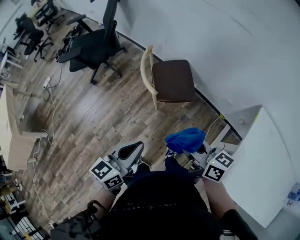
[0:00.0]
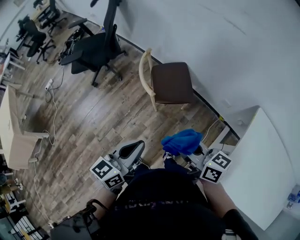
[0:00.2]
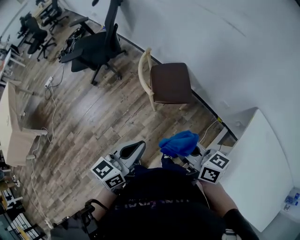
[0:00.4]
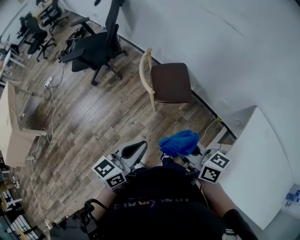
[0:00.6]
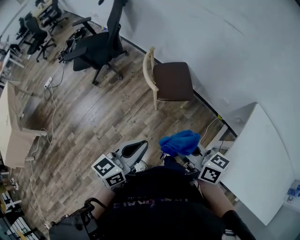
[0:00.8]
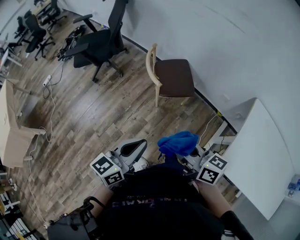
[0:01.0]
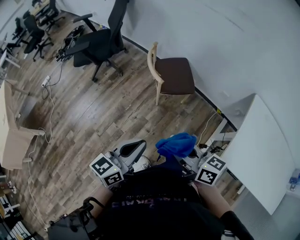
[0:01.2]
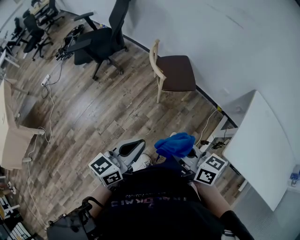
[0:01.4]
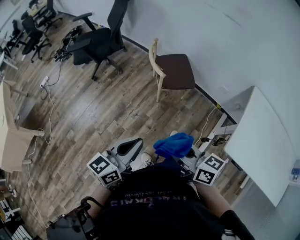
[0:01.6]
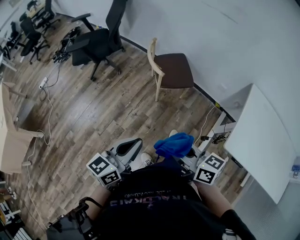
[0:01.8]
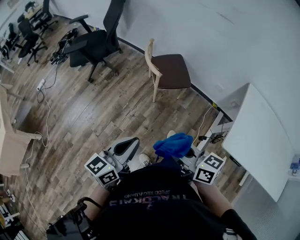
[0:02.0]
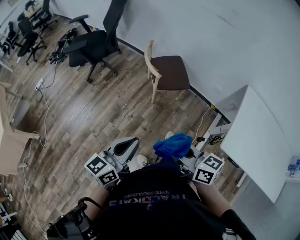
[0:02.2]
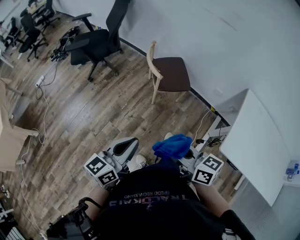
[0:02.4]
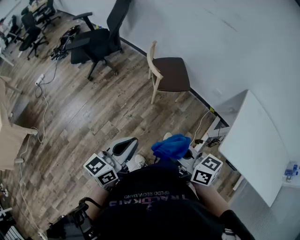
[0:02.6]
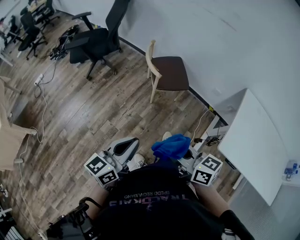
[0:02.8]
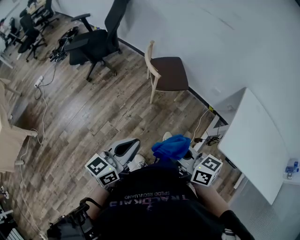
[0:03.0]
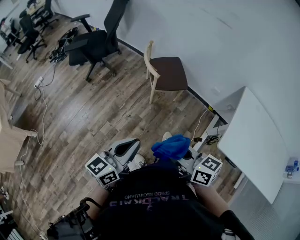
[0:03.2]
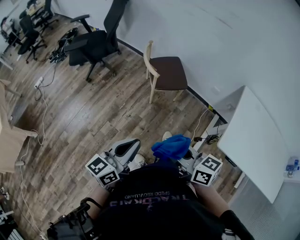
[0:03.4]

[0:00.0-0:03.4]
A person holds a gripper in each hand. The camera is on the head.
0.0 to 1.6 s: The grippers both shift backward and to the left by approximately 20 cm.
1.6 to 3.4 s: The grippers make only small movements.

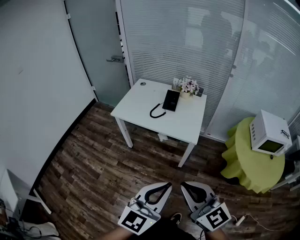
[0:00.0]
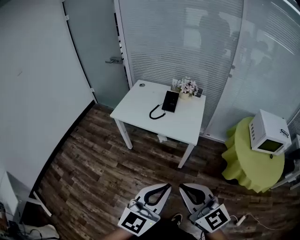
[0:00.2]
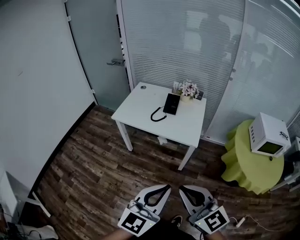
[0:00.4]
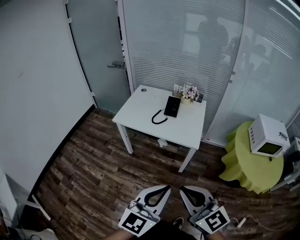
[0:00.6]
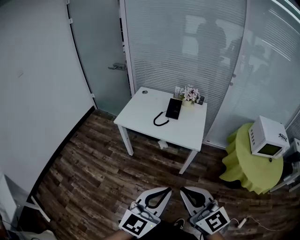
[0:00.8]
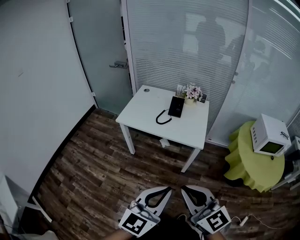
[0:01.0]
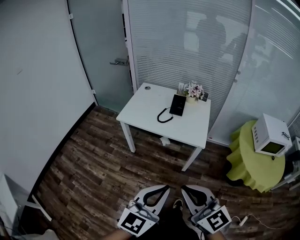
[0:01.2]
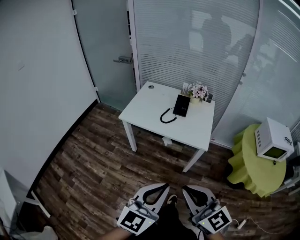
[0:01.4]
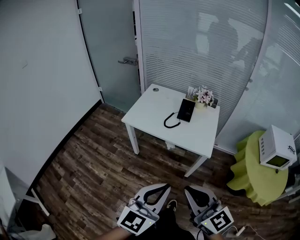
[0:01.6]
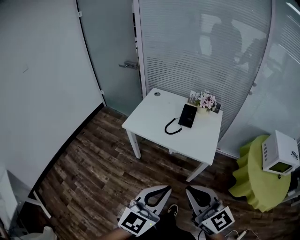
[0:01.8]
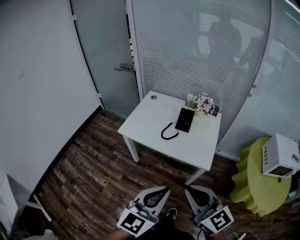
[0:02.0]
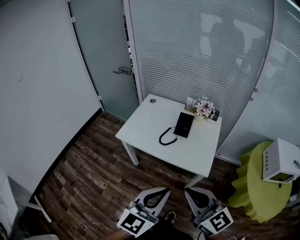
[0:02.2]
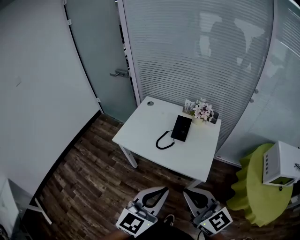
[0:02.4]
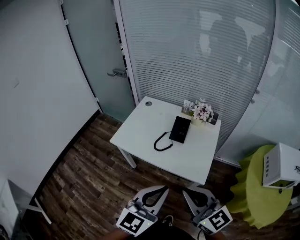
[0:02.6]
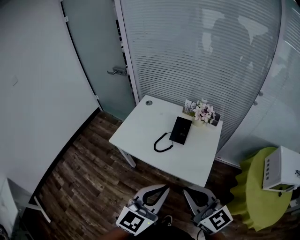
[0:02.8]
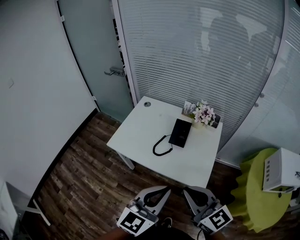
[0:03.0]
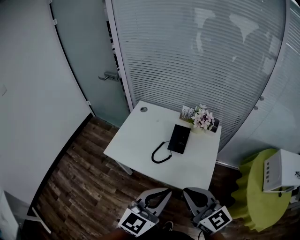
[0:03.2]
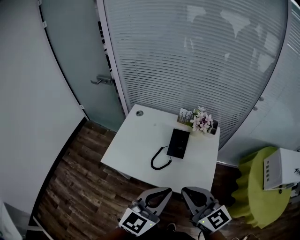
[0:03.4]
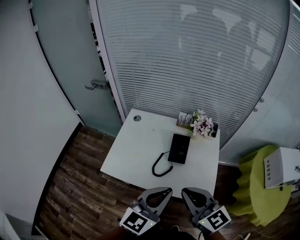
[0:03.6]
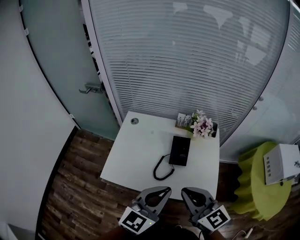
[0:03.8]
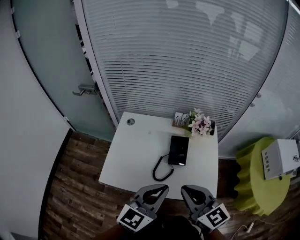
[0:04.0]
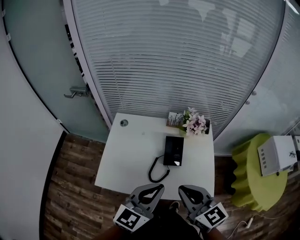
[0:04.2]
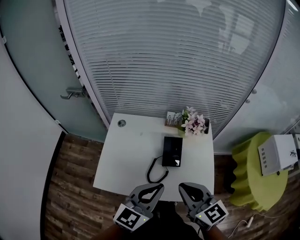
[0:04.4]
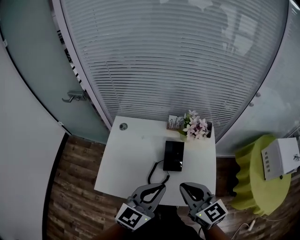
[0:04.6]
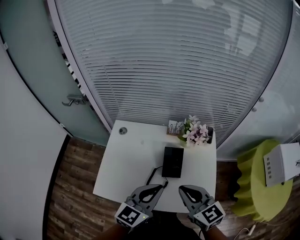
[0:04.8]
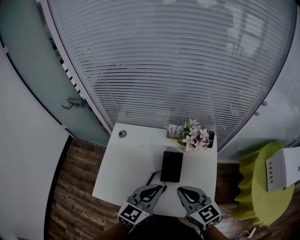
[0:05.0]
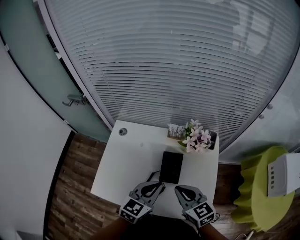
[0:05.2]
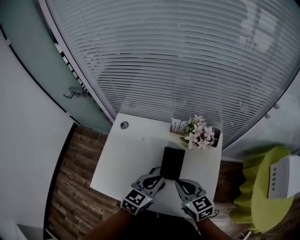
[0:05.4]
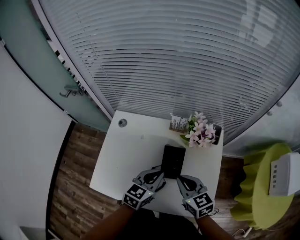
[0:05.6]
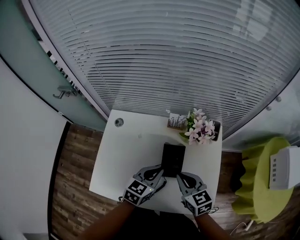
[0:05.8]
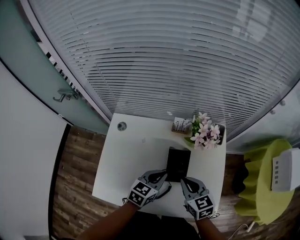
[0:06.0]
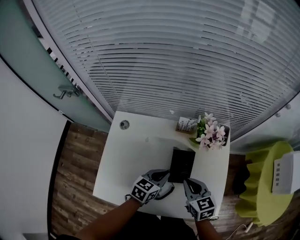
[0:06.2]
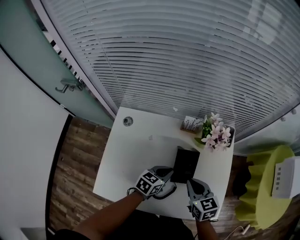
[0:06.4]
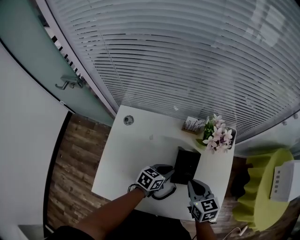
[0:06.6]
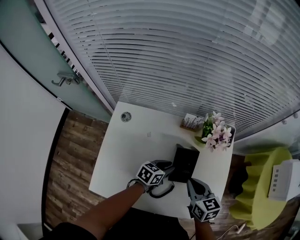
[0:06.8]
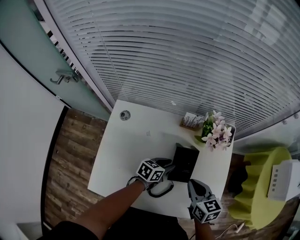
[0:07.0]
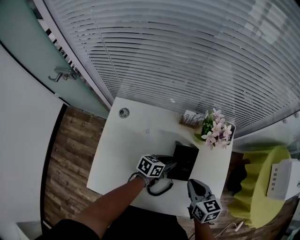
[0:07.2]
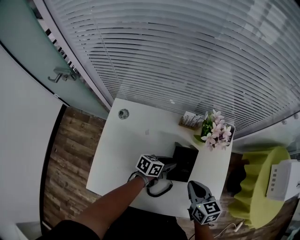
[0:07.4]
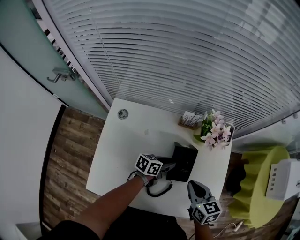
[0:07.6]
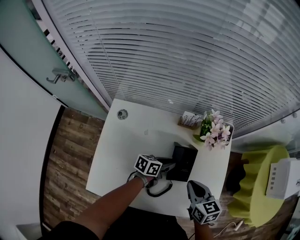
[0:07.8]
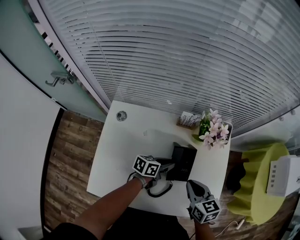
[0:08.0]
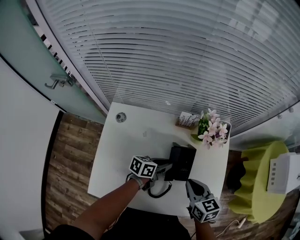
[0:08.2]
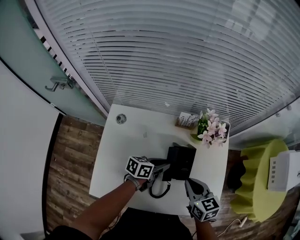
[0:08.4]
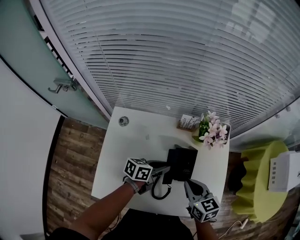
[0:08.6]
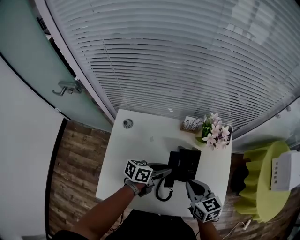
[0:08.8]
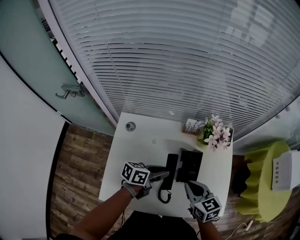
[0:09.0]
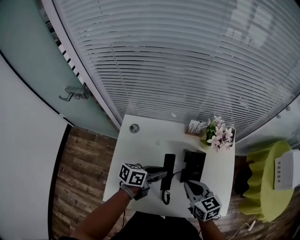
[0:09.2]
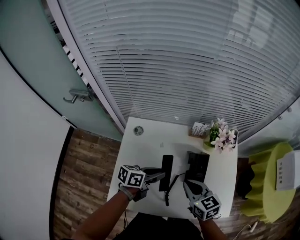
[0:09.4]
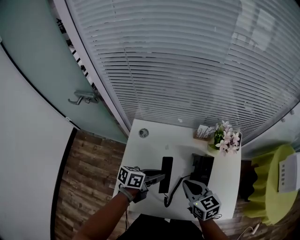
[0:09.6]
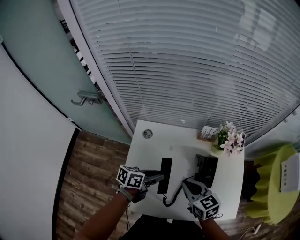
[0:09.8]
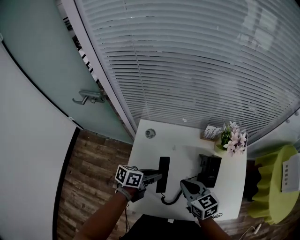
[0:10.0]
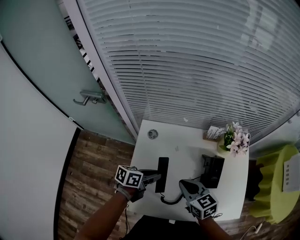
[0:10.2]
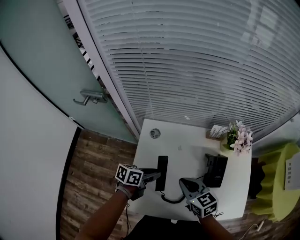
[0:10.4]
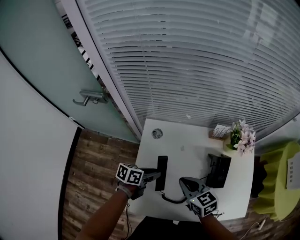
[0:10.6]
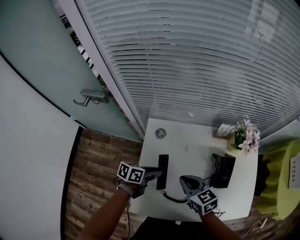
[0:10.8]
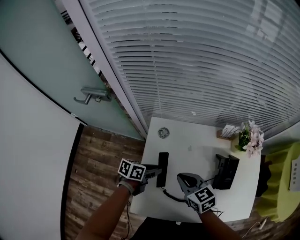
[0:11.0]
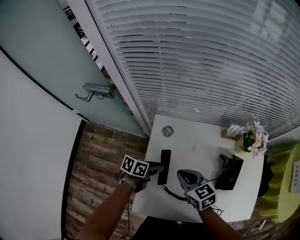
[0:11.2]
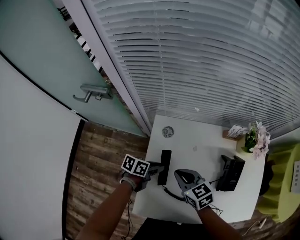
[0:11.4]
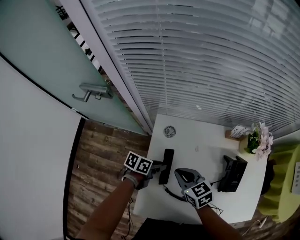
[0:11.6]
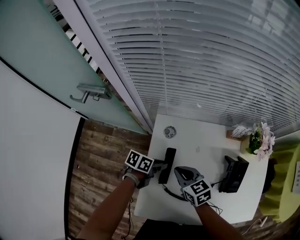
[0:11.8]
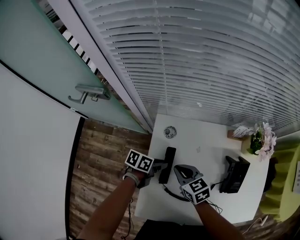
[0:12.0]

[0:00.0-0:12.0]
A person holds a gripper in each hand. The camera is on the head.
0.0 to 1.6 s: Both grippers move to the left and forward, roughly 10 cm.
1.6 to 3.0 s: The right gripper heads forward, covering approximately 25 cm; the left gripper is displaced forward and to the right by about 25 cm.
3.0 to 4.4 s: The grippers both shift forward and to the left by approximately 25 cm. The right gripper changes its angle by roughly 20 degrees.
4.4 to 6.0 s: The left gripper heads downward and forward, covering about 30 cm, and rotates about 30 degrees; the right gripper moves forward and downward, roughly 25 cm.
6.0 to 7.6 s: The left gripper is displaced downward and forward by about 15 cm, and changes its angle by about 30 degrees.
7.6 to 9.0 s: The left gripper is displaced upward, to the left and backward by about 15 cm, while the right gripper goes about 5 cm to the left.
9.0 to 10.4 s: Both grippers travel together to the left, some 20 cm.
10.4 to 12.0 s: The left gripper ends up approximately 15 cm from where it was; the right gripper moves some 20 cm.

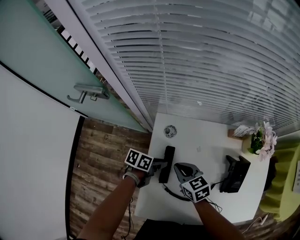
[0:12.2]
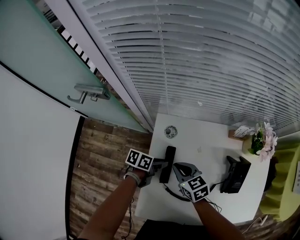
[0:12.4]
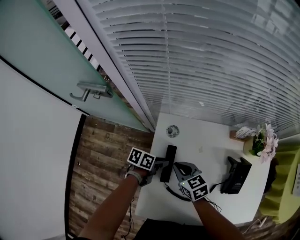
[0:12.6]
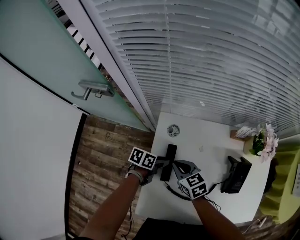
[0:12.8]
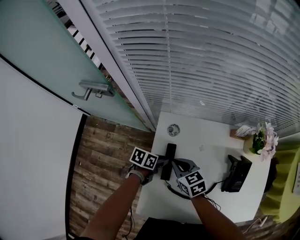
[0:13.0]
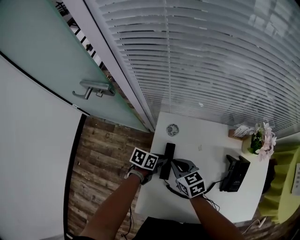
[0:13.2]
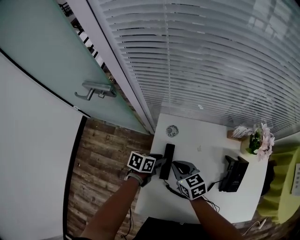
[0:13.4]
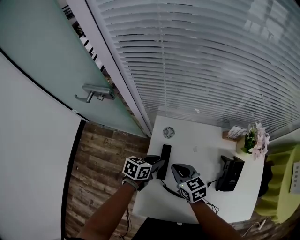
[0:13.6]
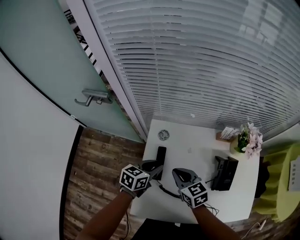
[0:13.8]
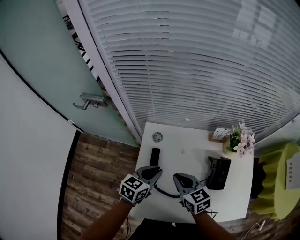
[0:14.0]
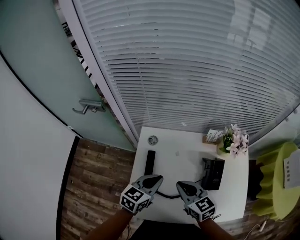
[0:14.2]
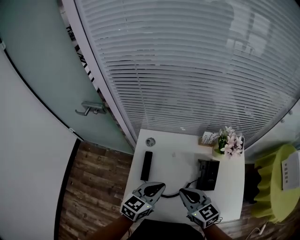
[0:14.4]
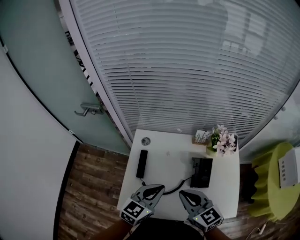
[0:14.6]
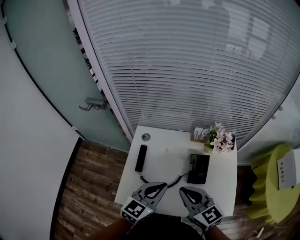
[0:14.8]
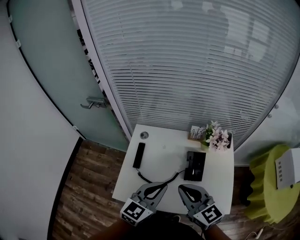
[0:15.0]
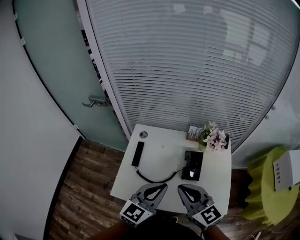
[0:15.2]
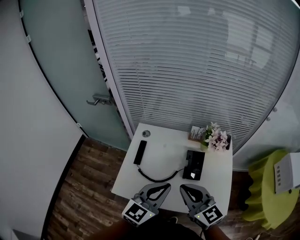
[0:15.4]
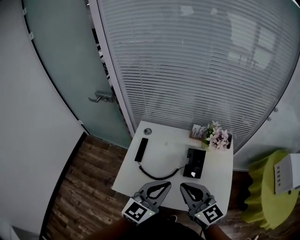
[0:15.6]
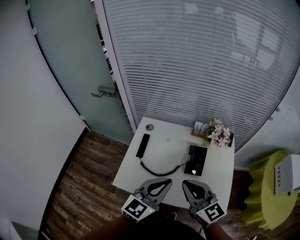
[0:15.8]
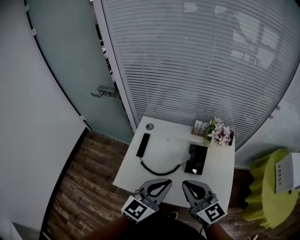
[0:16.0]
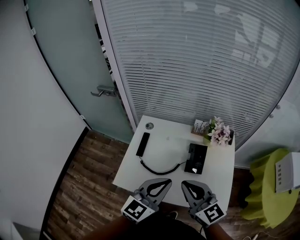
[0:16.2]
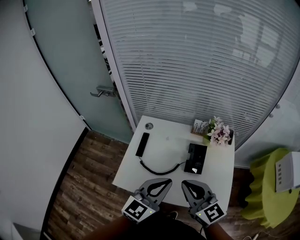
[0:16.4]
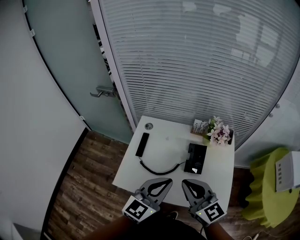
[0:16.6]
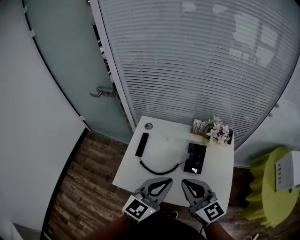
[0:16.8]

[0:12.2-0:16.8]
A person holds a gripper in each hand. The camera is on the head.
12.2 to 13.8 s: The right gripper shifts approximately 5 cm upward. The left gripper shifts roughly 10 cm upward, and swivels approximately 30 degrees.
13.8 to 15.2 s: The right gripper heads upward, backward and to the right, covering some 35 cm, and turns by some 30 degrees; the left gripper moves backward, upward and to the right, about 40 cm, swivels about 40 degrees, and closes its fingers.
15.2 to 16.8 s: There are only small adjustments of the grippers.

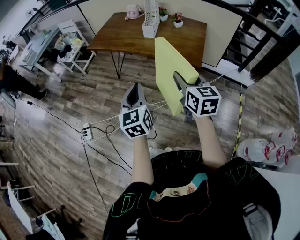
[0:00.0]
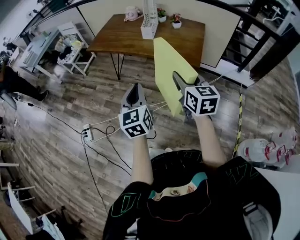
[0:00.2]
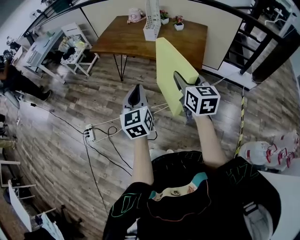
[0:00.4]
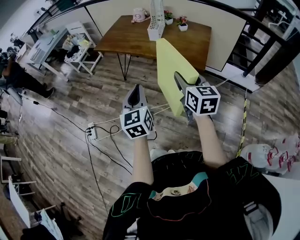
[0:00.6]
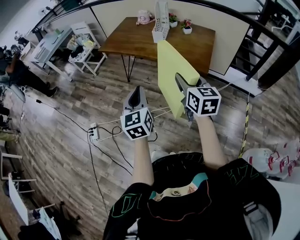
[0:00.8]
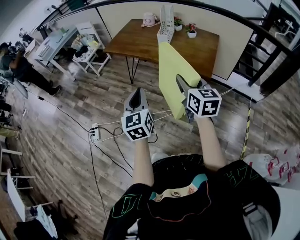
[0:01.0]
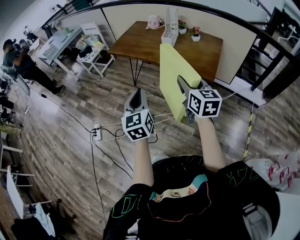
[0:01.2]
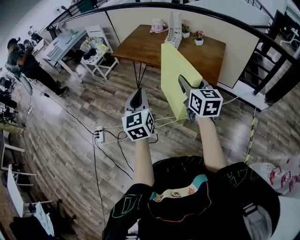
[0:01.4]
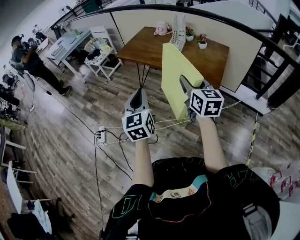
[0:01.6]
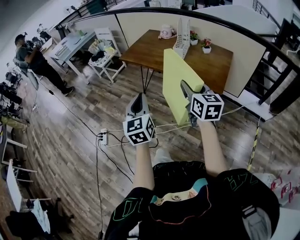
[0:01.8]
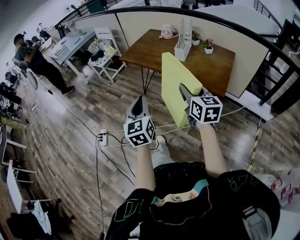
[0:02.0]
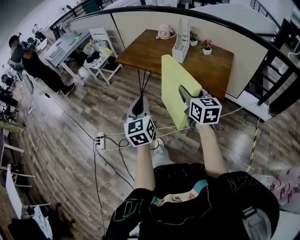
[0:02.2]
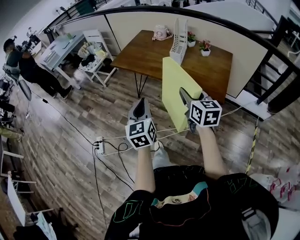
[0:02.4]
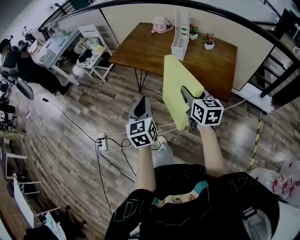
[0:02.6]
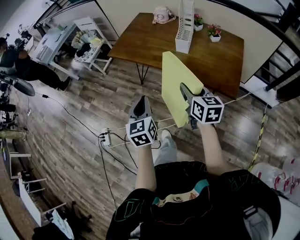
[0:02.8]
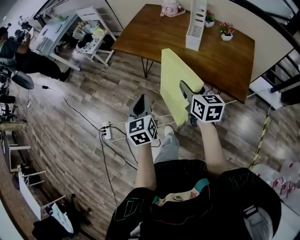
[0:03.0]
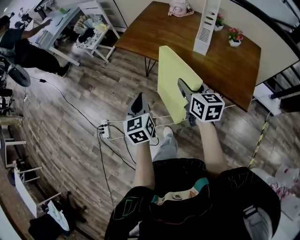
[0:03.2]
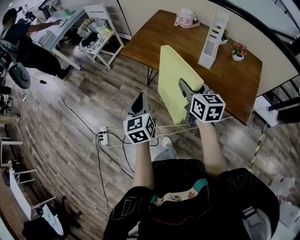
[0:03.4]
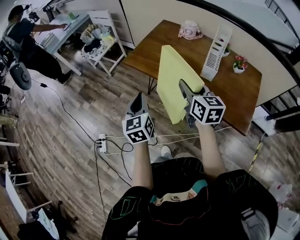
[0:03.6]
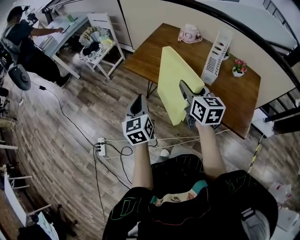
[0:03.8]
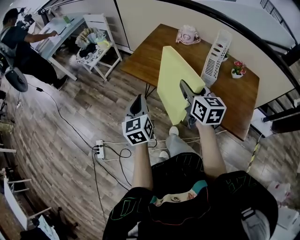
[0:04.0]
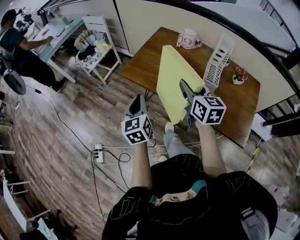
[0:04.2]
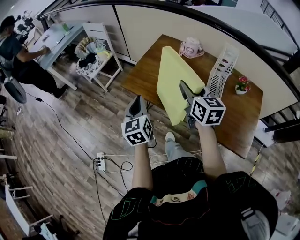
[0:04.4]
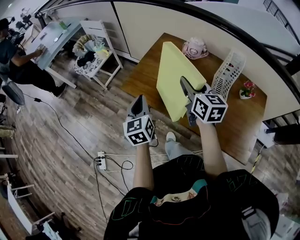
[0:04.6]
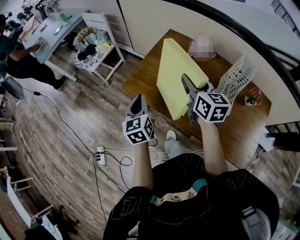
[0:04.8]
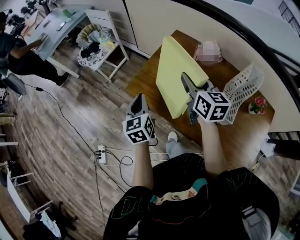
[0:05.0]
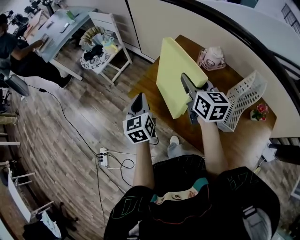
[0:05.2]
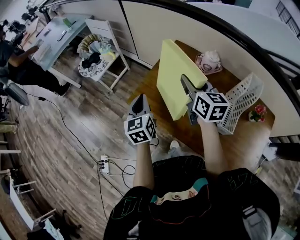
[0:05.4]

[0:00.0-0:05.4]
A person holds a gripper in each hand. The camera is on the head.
0.0 to 1.4 s: The right gripper ends up approximately 5 cm from where it was. The left gripper shifts by approximately 5 cm.
1.4 to 2.8 s: Both grippers move forward and downward, about 20 cm.
2.8 to 4.0 s: Both grippers move forward and to the left, approximately 25 cm.
4.0 to 5.4 s: The two grippers go roughly 30 cm forward.
